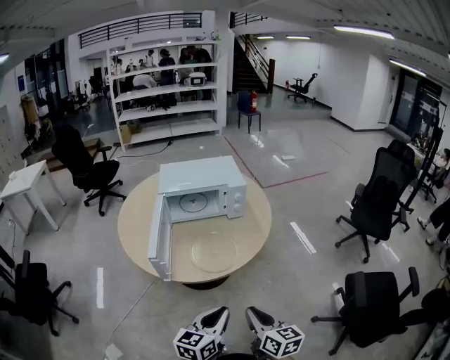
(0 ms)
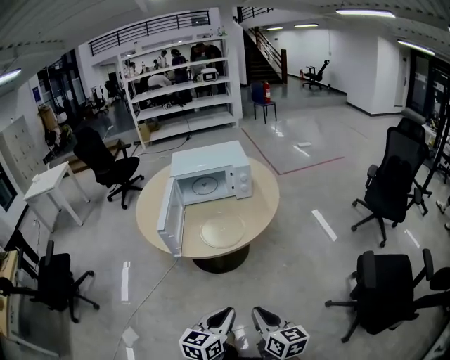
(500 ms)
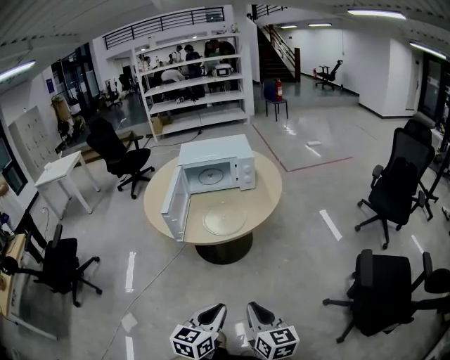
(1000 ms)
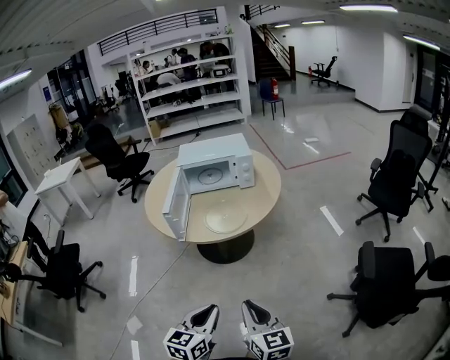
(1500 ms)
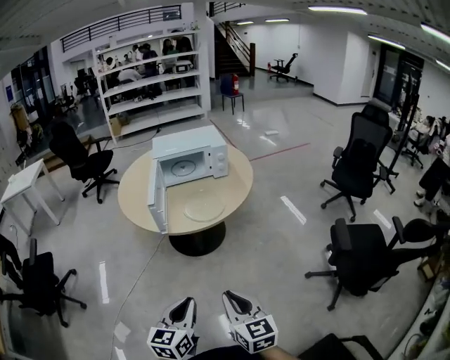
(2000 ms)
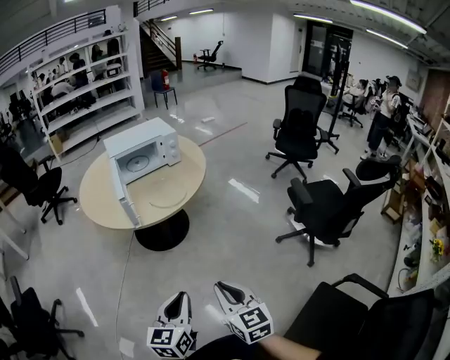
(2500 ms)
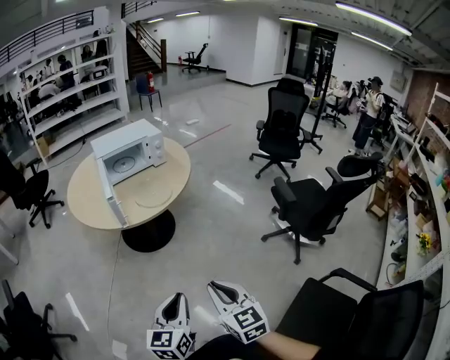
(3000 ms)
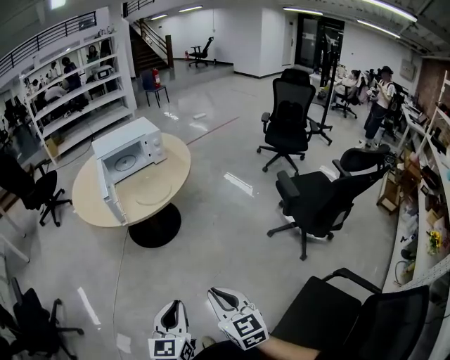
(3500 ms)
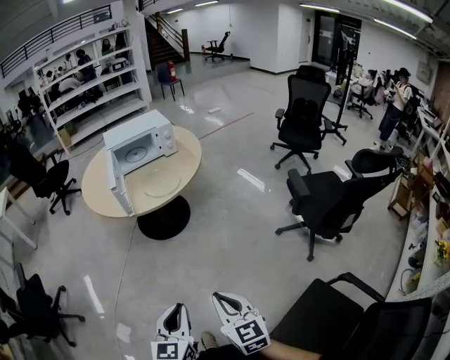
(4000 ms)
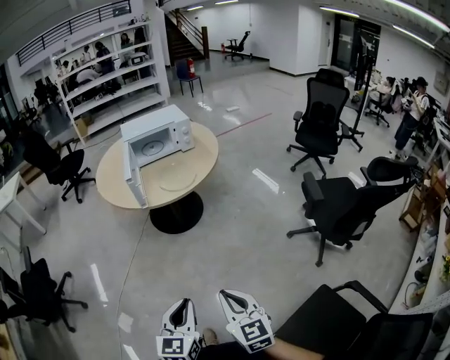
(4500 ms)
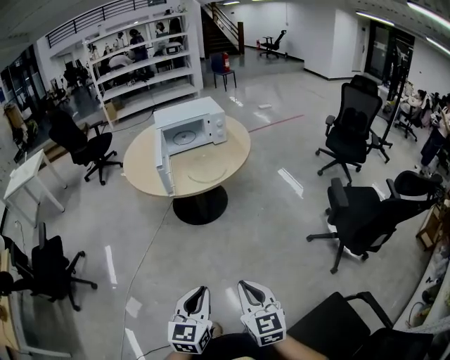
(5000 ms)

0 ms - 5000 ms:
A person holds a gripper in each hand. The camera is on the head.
0 ms - 2500 ms: The two grippers go about 35 cm backward. The right gripper rotates roughly 20 degrees.
2500 ms - 5000 ms: The two grippers go some 10 cm backward and to the right.

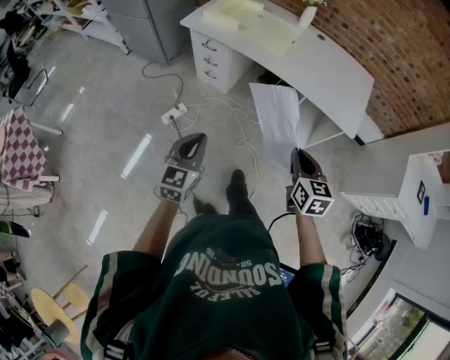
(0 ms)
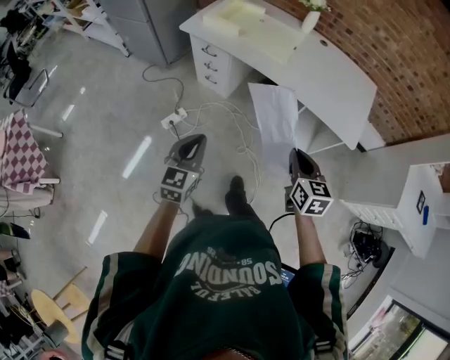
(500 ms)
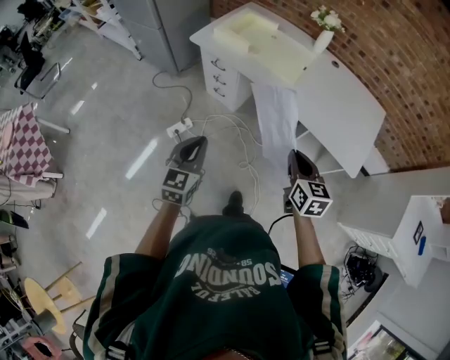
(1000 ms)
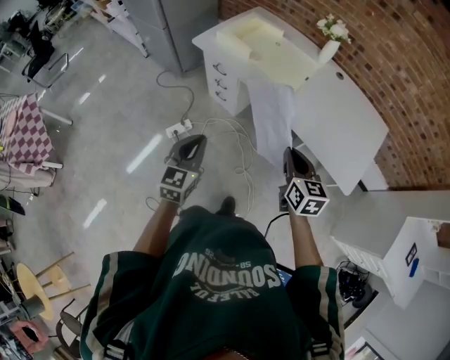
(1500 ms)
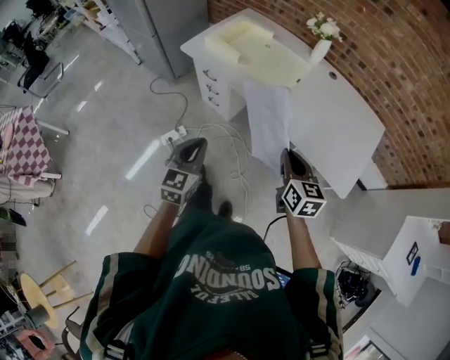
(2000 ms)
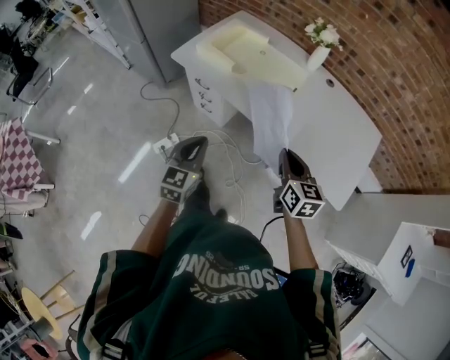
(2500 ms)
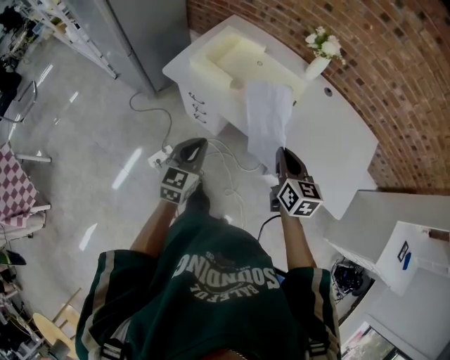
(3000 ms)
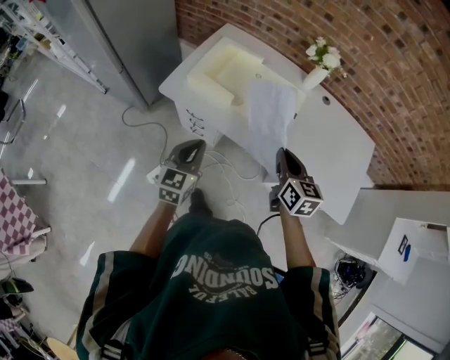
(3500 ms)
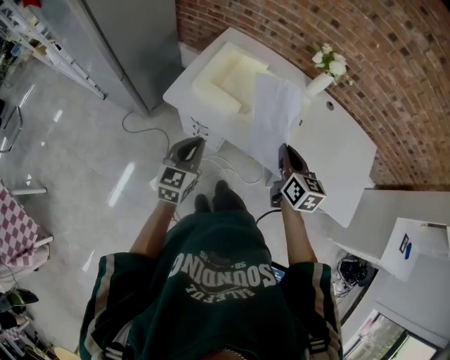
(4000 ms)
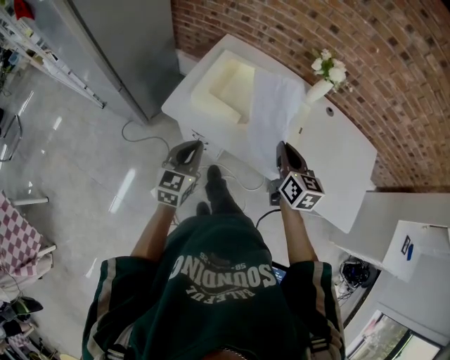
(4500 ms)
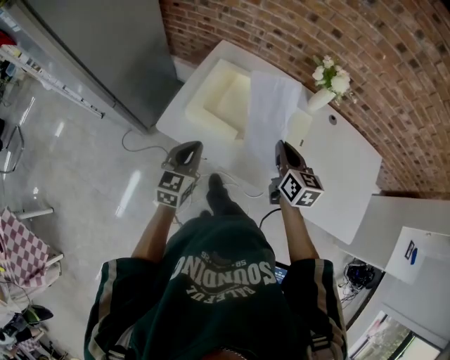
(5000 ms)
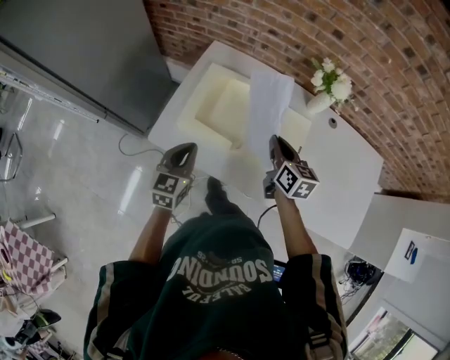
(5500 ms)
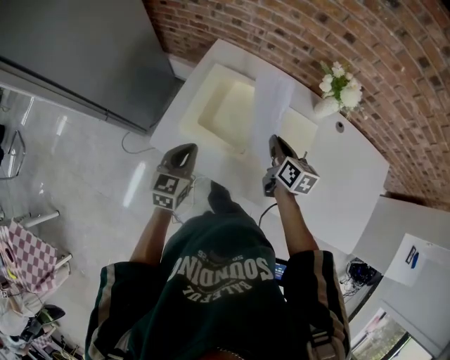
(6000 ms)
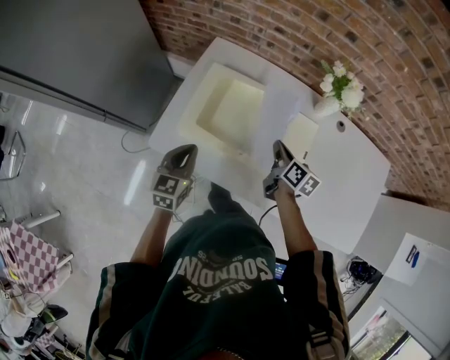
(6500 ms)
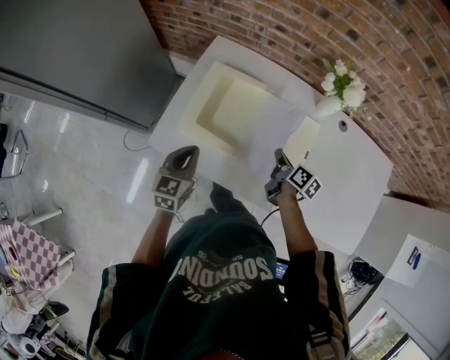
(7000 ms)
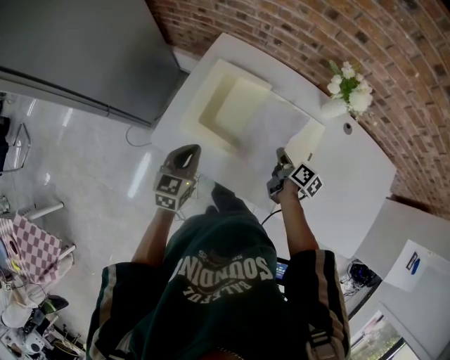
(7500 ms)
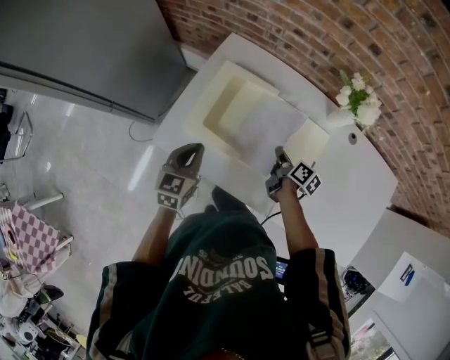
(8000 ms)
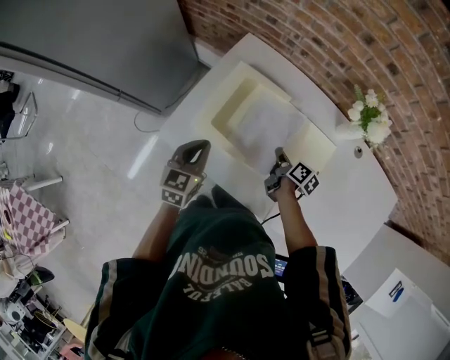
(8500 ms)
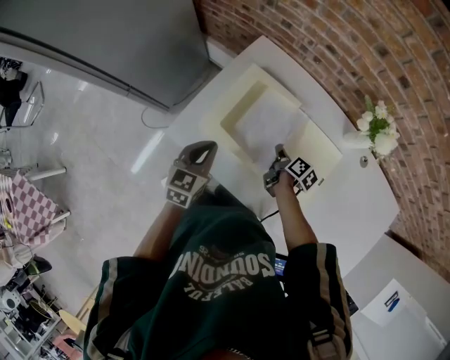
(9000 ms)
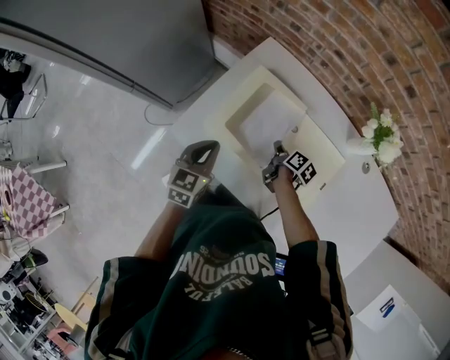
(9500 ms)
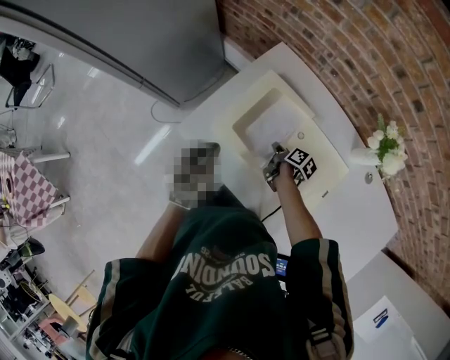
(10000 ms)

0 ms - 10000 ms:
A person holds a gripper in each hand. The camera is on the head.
0 ms - 2000 ms: The left gripper goes about 20 cm forward and to the right; the right gripper heads forward, covering approximately 25 cm.
2000 ms - 4000 ms: The grippers both shift forward and to the left by approximately 35 cm.
4000 ms - 6000 ms: The grippers both shift forward by approximately 25 cm.
6000 ms - 8000 ms: The right gripper goes about 10 cm downward, and rotates about 30 degrees.
8000 ms - 10000 ms: The right gripper shifts some 15 cm to the left, downward and forward.

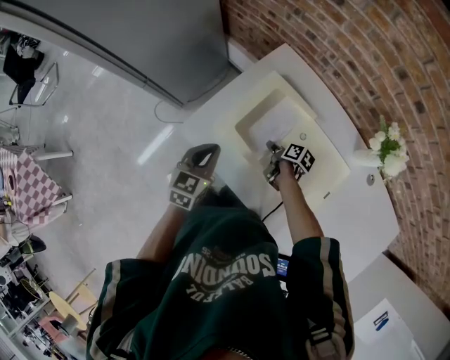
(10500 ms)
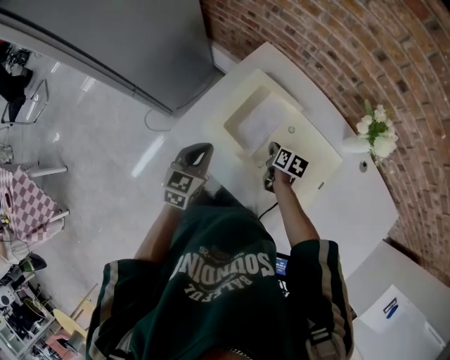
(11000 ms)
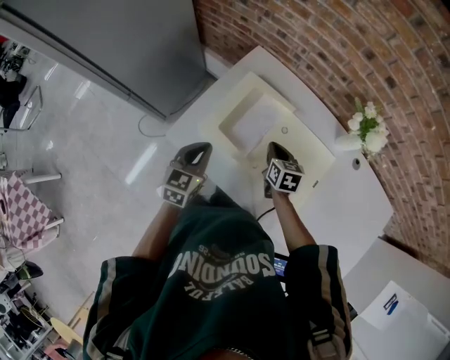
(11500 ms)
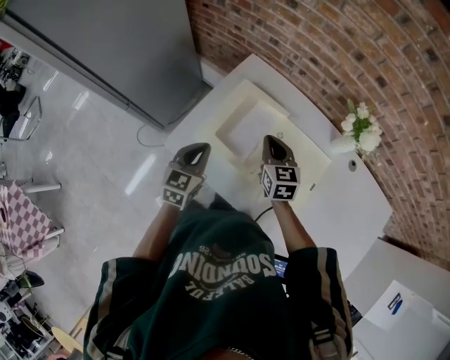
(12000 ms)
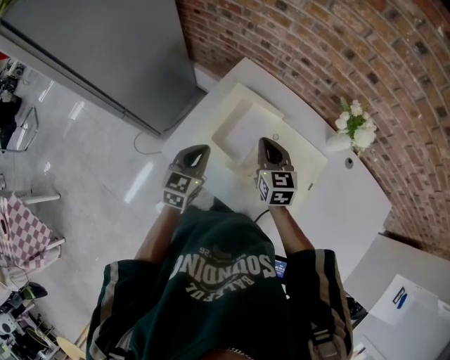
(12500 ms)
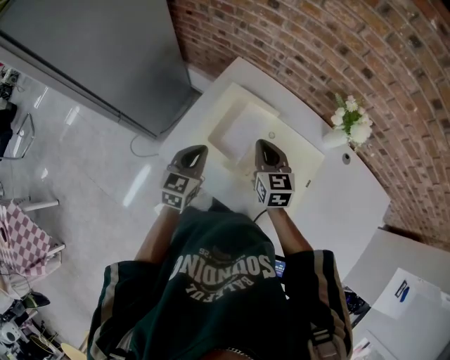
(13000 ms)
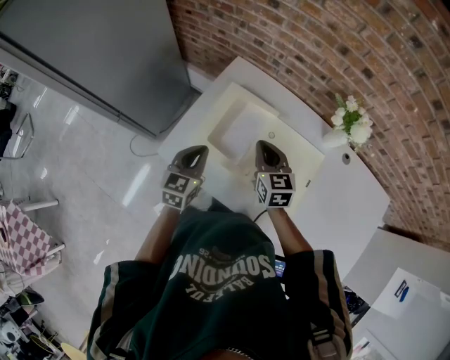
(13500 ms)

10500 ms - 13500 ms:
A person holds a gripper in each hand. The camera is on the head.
10500 ms - 12000 ms: The right gripper shifts some 20 cm upward, rotates around the line of its fingers by approximately 60 degrees, counterclockwise from behind, and closes up.
12000 ms - 13500 ms: The grippers make only small movements.

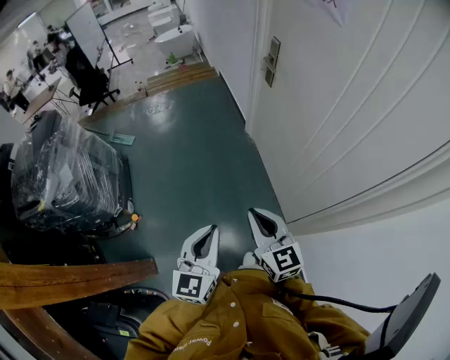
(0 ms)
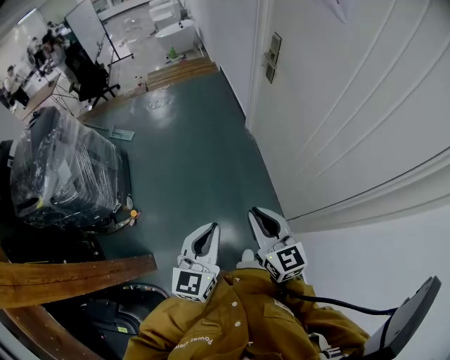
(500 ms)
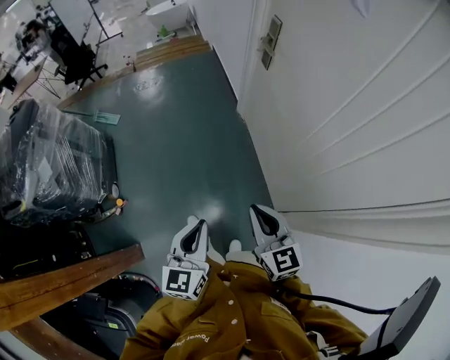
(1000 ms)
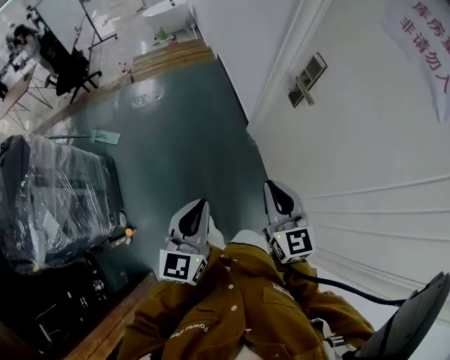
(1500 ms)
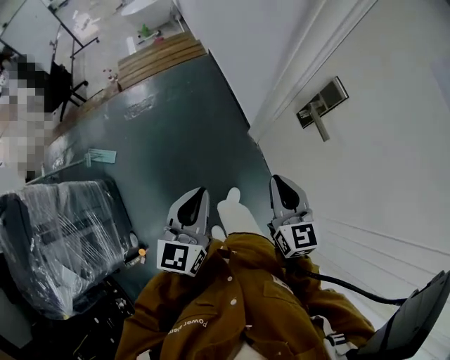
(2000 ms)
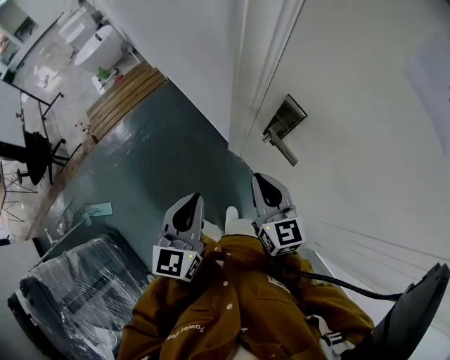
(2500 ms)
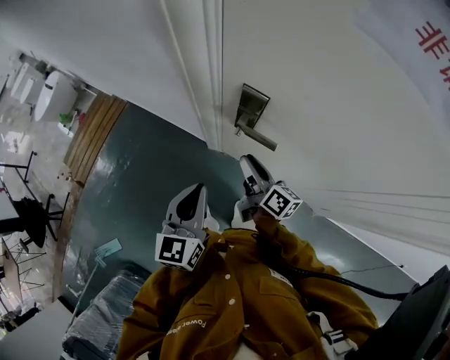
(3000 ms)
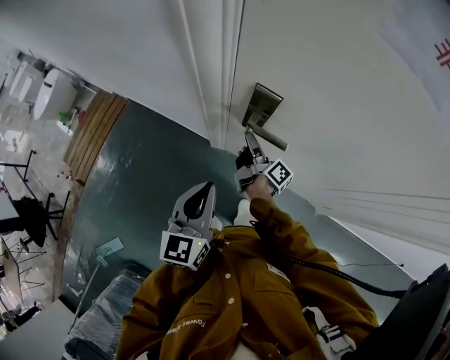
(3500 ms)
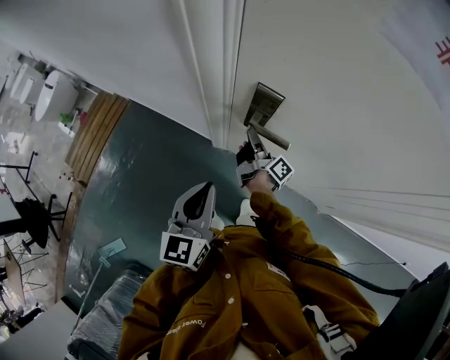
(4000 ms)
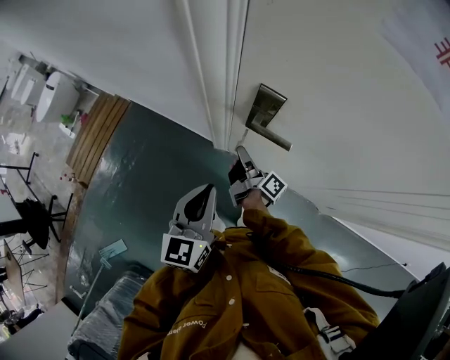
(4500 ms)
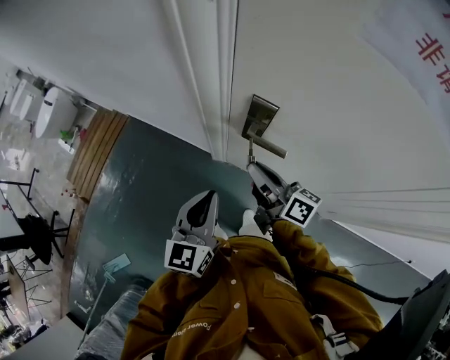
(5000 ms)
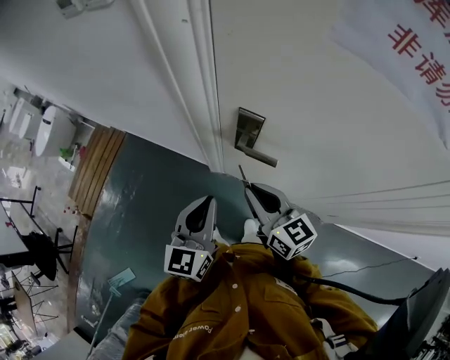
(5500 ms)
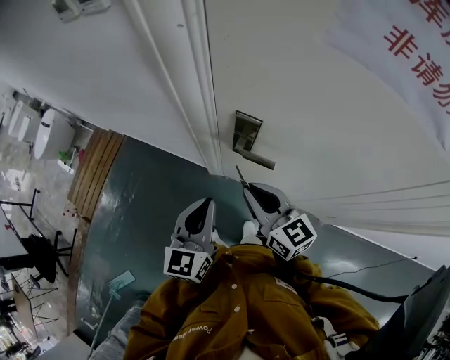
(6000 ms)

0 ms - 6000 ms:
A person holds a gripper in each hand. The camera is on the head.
0 ms - 2000 ms: Both grippers are carried forward, some 60 cm.
2000 ms - 4000 ms: The left gripper shifts by approximately 25 cm, and changes its angle by roughly 40 degrees; the right gripper changes place by roughly 30 cm, twists about 80 degrees clockwise, seen from behind, and opens, then closes once more.
4000 ms - 6000 ms: The right gripper is displaced upward and backward by some 20 cm, and twists about 70 degrees counterclockwise, seen from behind.

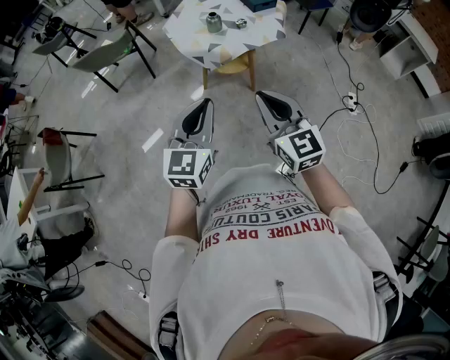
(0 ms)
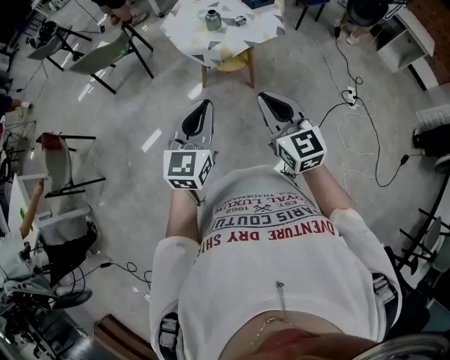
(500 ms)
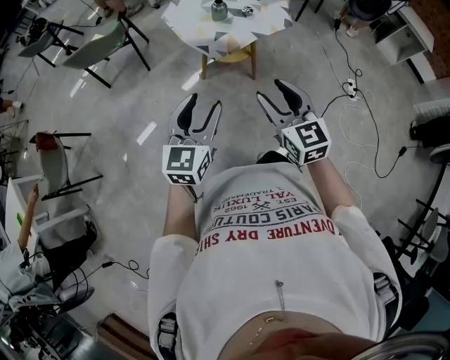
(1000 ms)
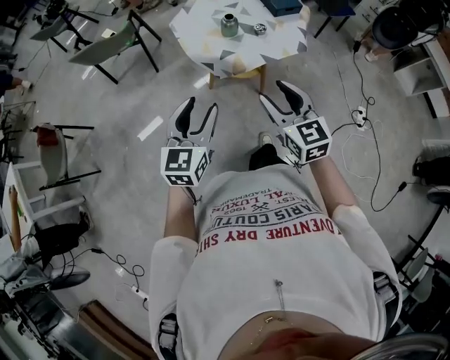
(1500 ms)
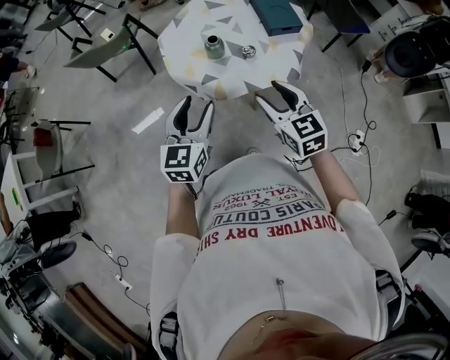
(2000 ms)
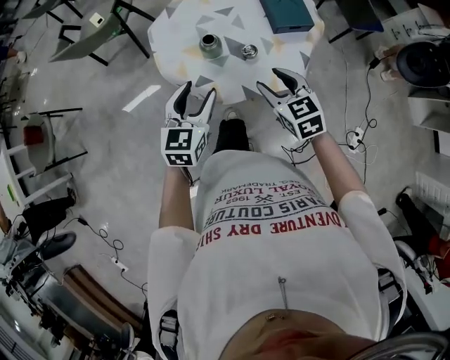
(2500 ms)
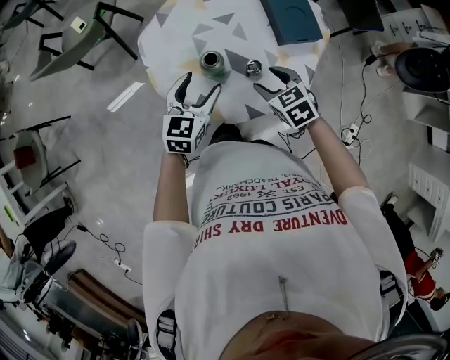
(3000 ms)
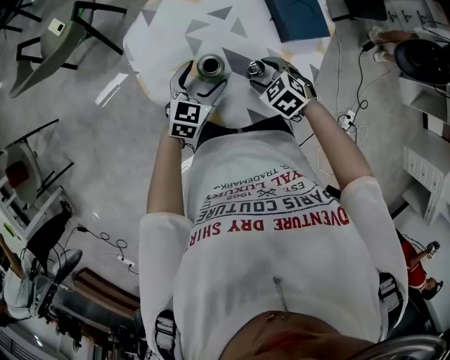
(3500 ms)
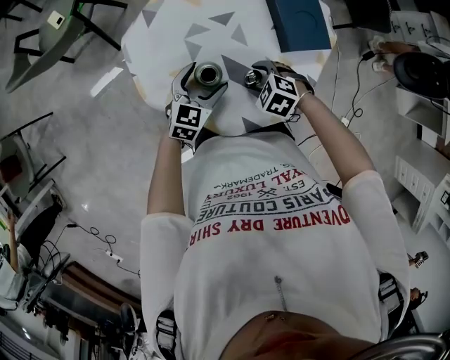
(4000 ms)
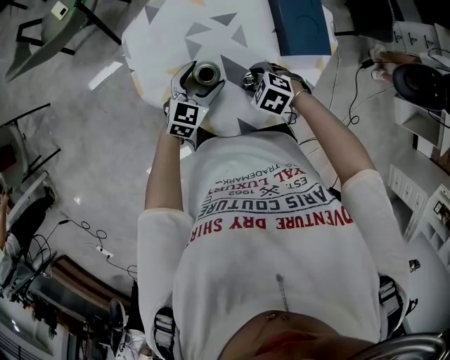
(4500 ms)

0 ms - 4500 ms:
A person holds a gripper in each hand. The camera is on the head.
0 ms - 2000 ms: Both grippers travel together forward, approximately 30 cm. The left gripper opens up, while the right gripper rotates approximately 20 degrees, and opens.
2000 ms - 4500 ms: The left gripper moves some 35 cm, changes its angle by some 20 degrees, and opens its fingers, while the right gripper shifts some 25 cm downward, and tips its fingers downward by roughly 50 degrees.
